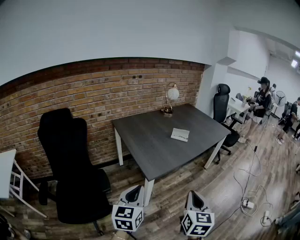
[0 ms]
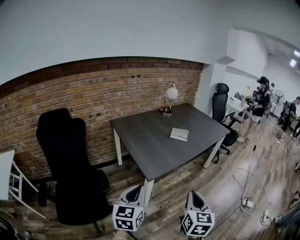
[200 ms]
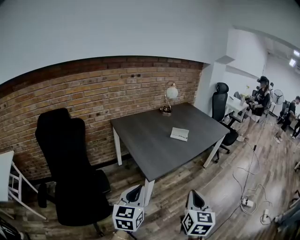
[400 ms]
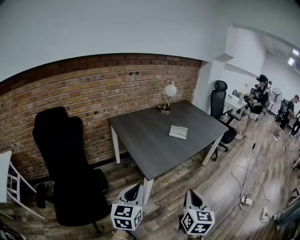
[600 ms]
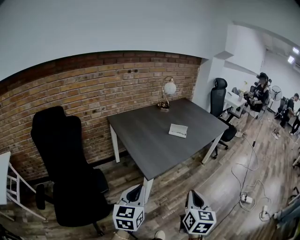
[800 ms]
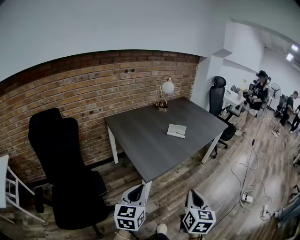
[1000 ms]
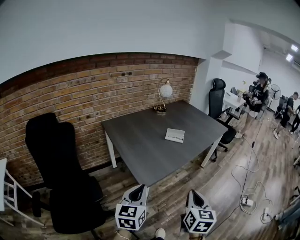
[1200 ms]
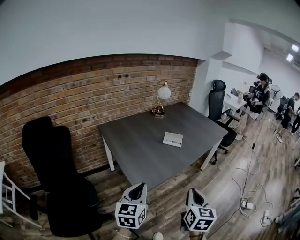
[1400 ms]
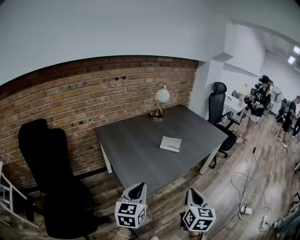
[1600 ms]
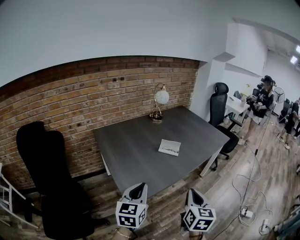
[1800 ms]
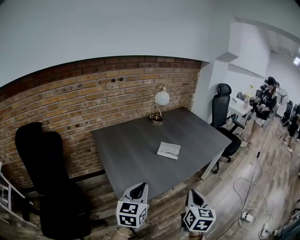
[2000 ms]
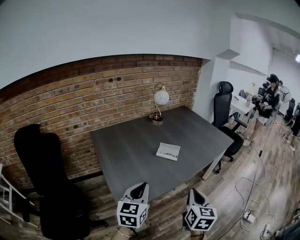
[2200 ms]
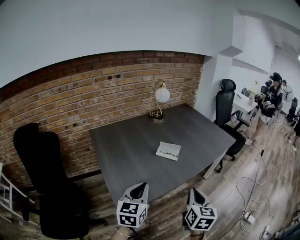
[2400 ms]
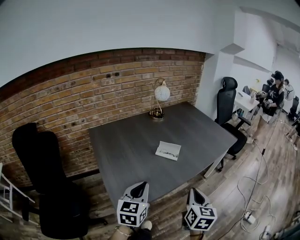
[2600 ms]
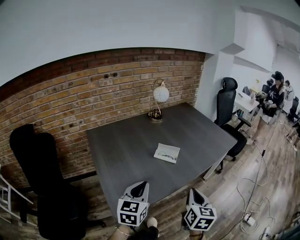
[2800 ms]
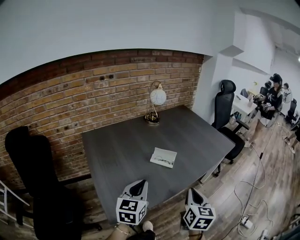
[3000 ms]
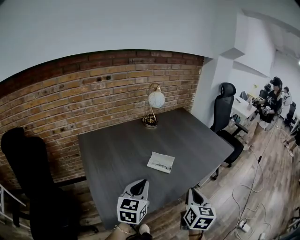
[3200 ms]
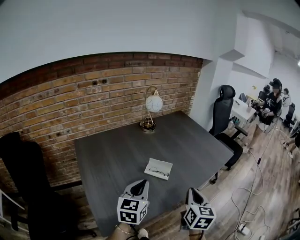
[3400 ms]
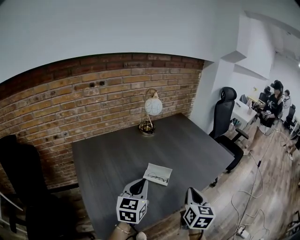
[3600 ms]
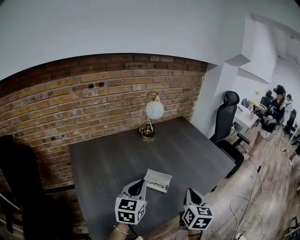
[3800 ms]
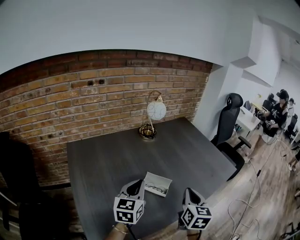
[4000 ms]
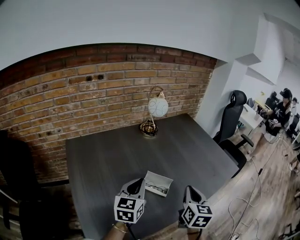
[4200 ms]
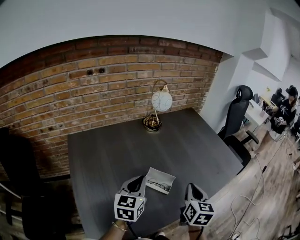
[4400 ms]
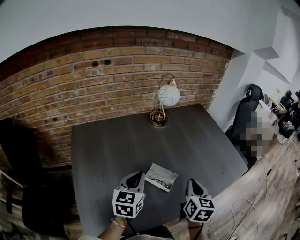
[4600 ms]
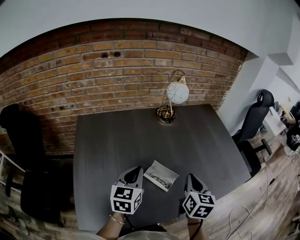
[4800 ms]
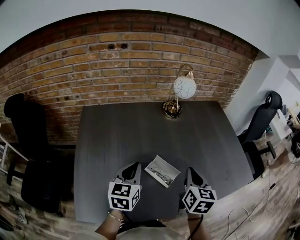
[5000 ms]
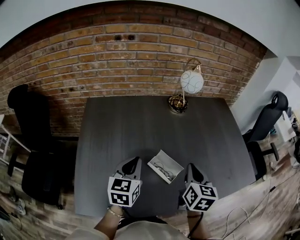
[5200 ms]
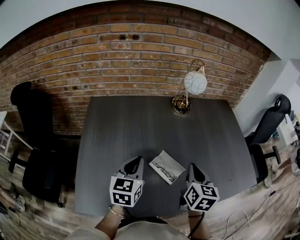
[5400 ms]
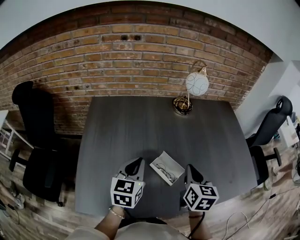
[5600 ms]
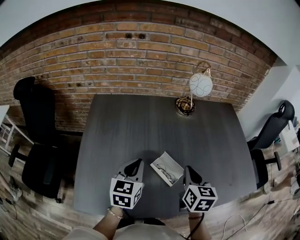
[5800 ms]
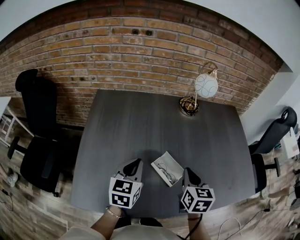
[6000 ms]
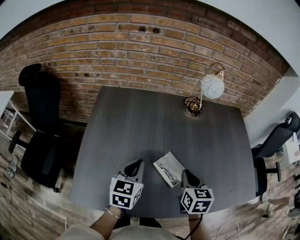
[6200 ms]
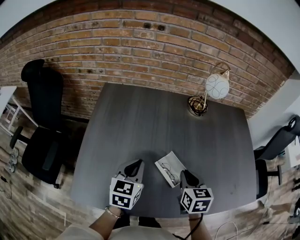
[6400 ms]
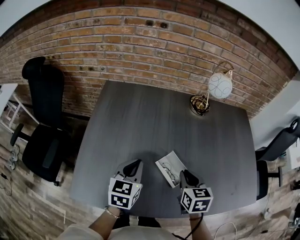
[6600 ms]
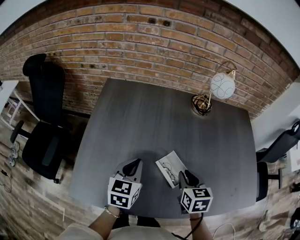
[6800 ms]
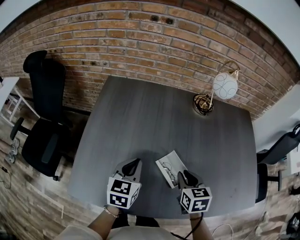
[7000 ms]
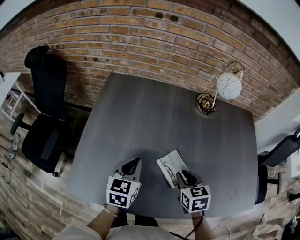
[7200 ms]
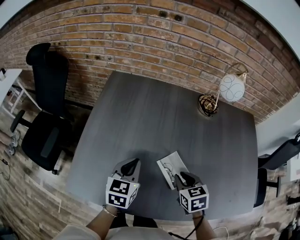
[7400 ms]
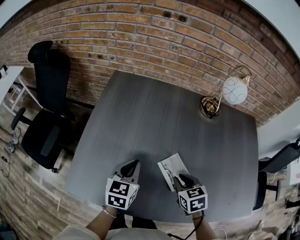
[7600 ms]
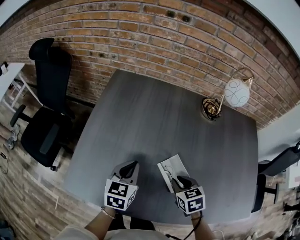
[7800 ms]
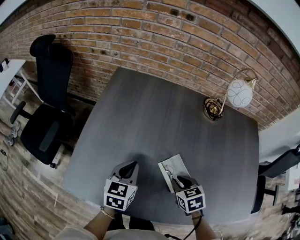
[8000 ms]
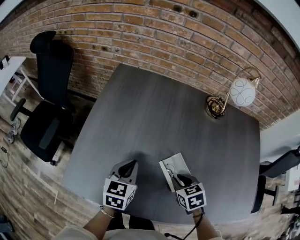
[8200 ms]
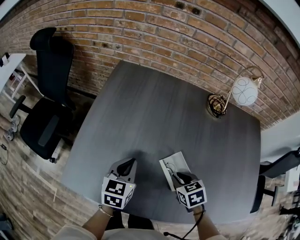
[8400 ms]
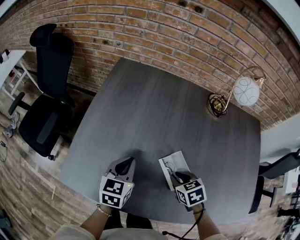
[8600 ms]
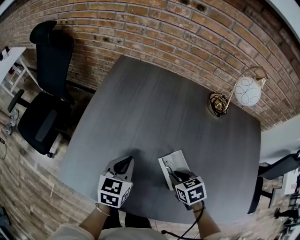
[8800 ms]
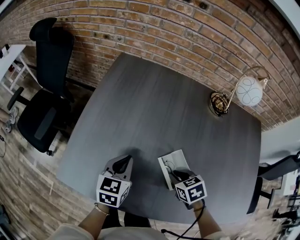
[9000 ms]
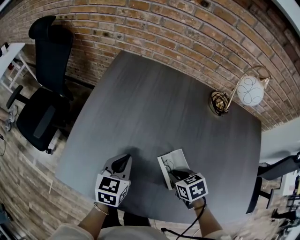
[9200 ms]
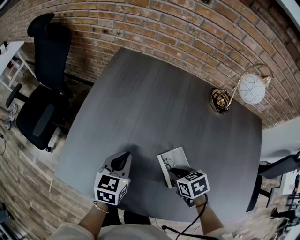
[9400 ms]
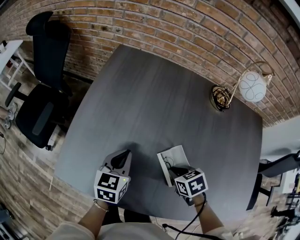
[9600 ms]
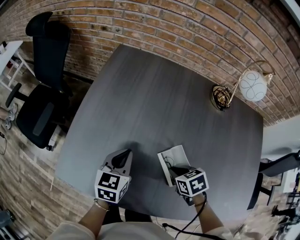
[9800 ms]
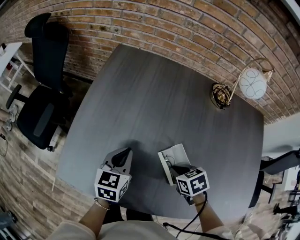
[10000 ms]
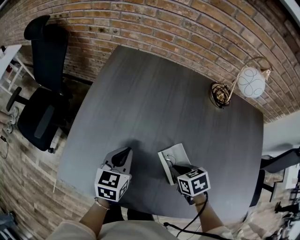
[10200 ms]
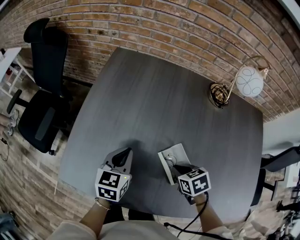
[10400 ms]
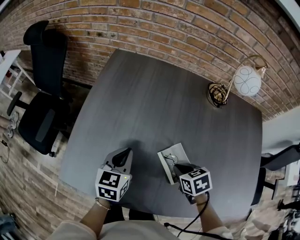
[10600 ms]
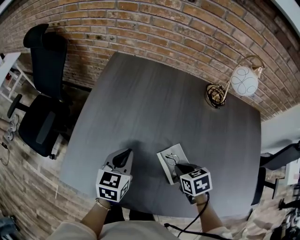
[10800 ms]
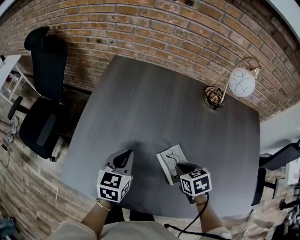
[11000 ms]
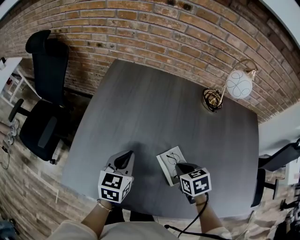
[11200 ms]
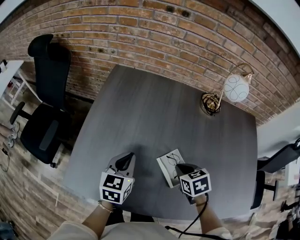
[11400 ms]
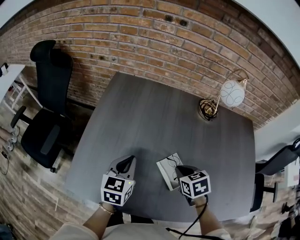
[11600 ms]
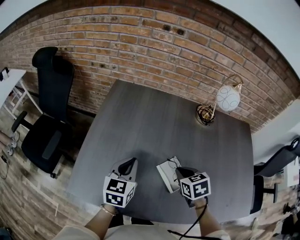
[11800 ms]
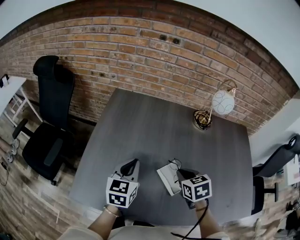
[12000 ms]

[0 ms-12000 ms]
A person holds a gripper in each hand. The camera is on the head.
0 ms to 1600 ms: Both grippers move forward, approximately 20 cm.
1600 ms to 3000 ms: The two grippers go some 20 cm forward.
3000 ms to 4400 ms: The grippers both shift forward by approximately 20 cm.
4400 ms to 6000 ms: The left gripper moves some 5 cm, and swivels some 30 degrees, while the right gripper changes place by some 10 cm, and changes its angle by about 30 degrees.
6000 ms to 7600 ms: The right gripper travels downward by some 10 cm, and rotates approximately 40 degrees. The left gripper goes approximately 5 cm downward.
7600 ms to 9000 ms: The right gripper travels downward by roughly 5 cm.
9000 ms to 10400 ms: There are only small adjustments of the grippers.
10400 ms to 12000 ms: Both grippers travel together upward, some 10 cm. The right gripper swivels approximately 20 degrees.

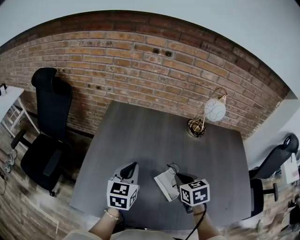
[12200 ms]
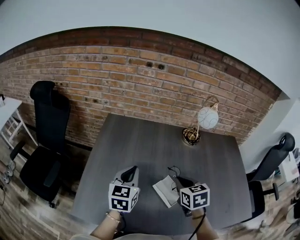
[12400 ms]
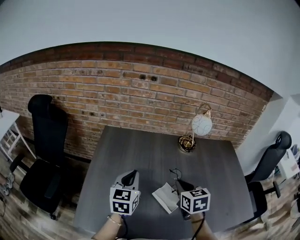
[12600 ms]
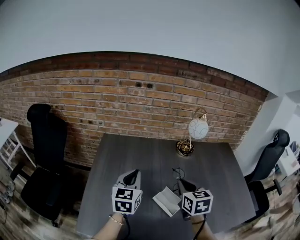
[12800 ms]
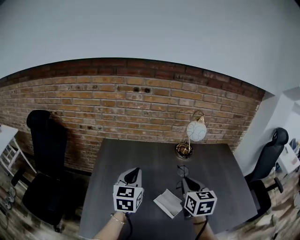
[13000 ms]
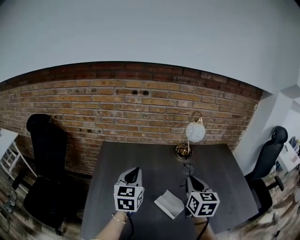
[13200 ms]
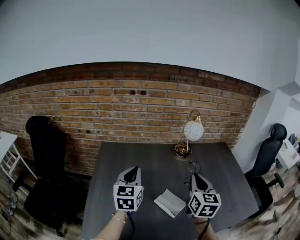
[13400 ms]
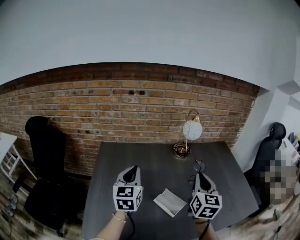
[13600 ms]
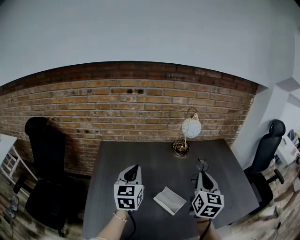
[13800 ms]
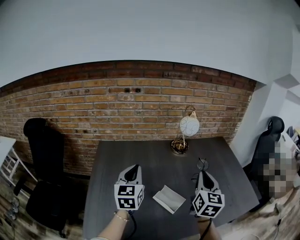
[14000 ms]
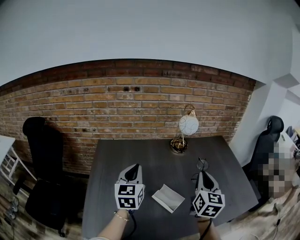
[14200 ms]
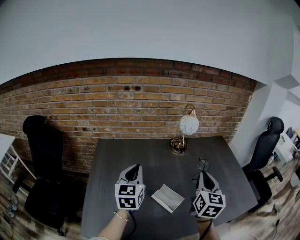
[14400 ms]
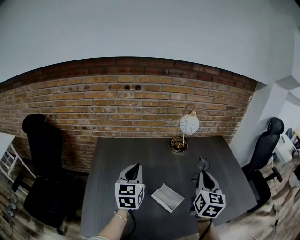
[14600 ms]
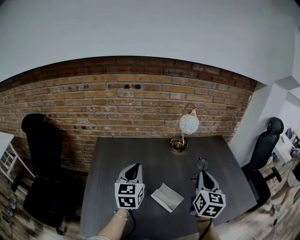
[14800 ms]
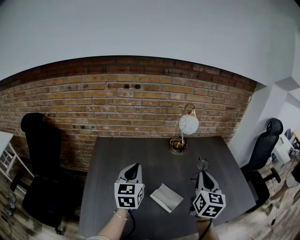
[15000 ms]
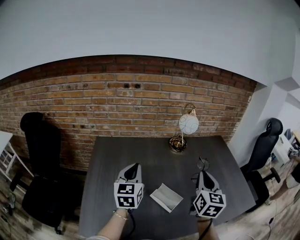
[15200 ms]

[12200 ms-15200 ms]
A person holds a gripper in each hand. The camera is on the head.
12200 ms to 13800 ms: The left gripper is displaced upward and forward by approximately 10 cm. The right gripper is displaced upward and to the right by approximately 20 cm, and tilts its fingers approximately 40 degrees upward.
13800 ms to 15200 ms: The grippers move only a little.

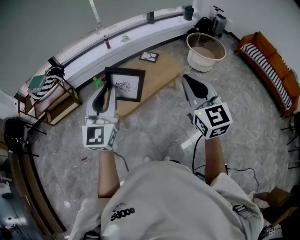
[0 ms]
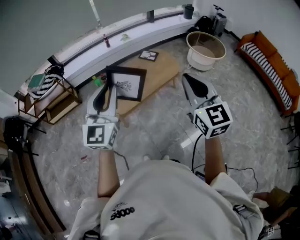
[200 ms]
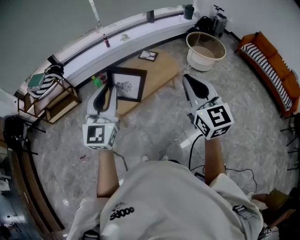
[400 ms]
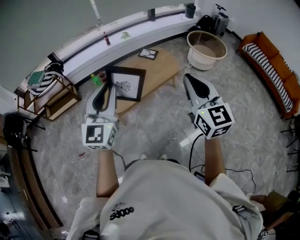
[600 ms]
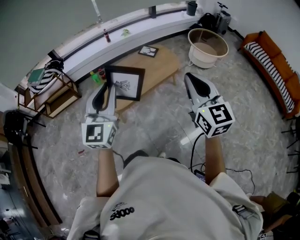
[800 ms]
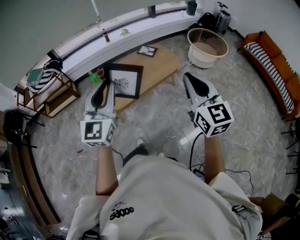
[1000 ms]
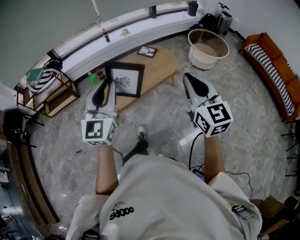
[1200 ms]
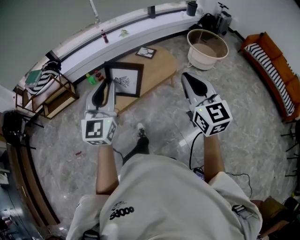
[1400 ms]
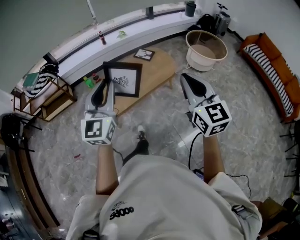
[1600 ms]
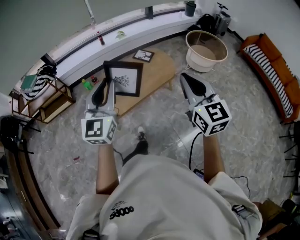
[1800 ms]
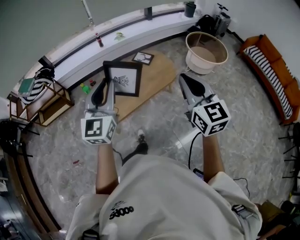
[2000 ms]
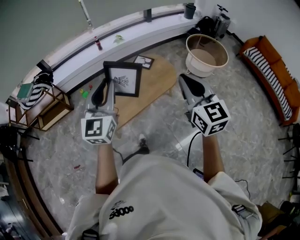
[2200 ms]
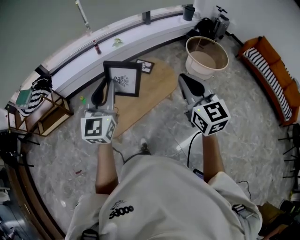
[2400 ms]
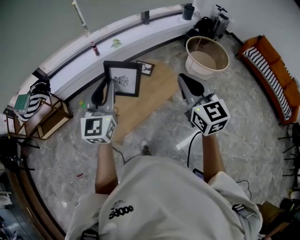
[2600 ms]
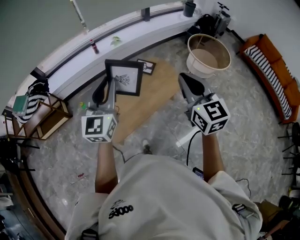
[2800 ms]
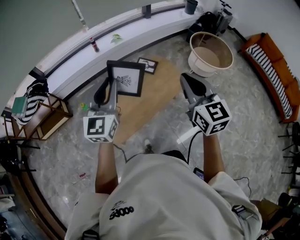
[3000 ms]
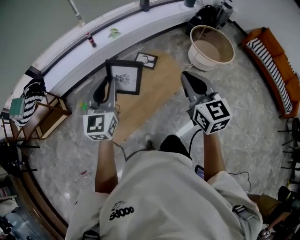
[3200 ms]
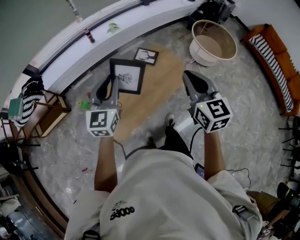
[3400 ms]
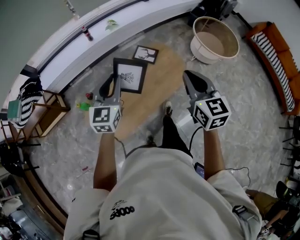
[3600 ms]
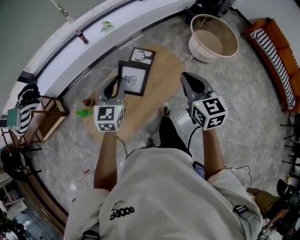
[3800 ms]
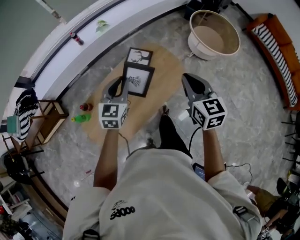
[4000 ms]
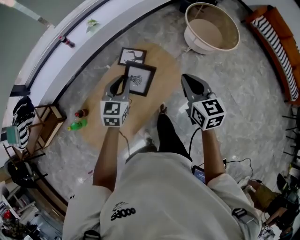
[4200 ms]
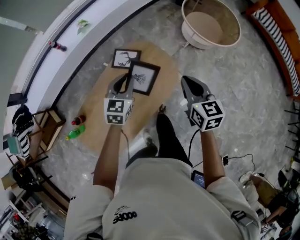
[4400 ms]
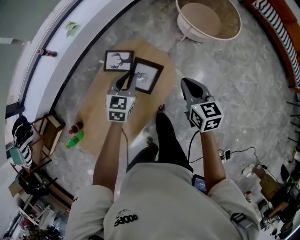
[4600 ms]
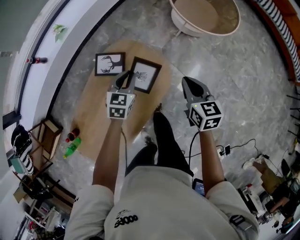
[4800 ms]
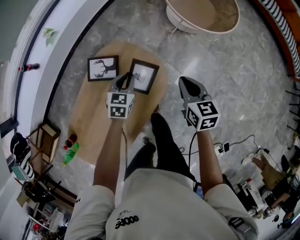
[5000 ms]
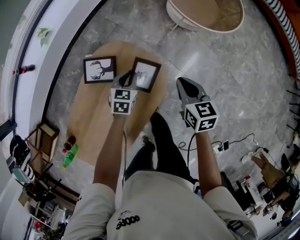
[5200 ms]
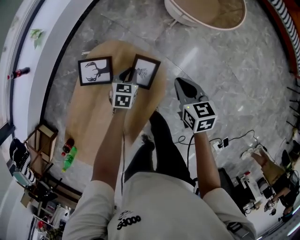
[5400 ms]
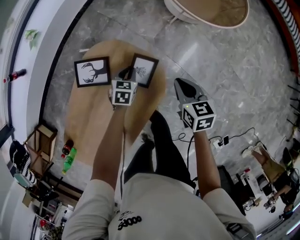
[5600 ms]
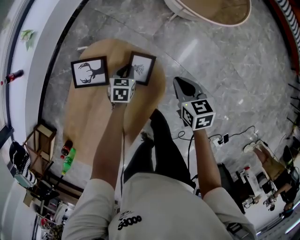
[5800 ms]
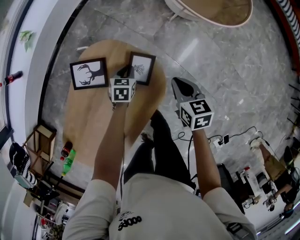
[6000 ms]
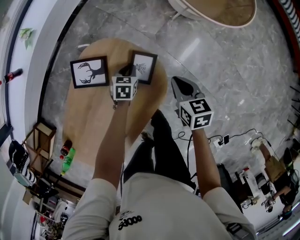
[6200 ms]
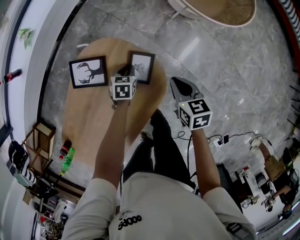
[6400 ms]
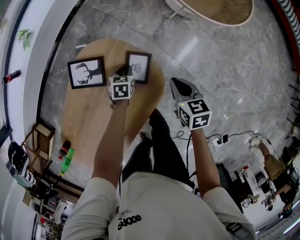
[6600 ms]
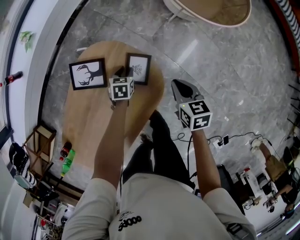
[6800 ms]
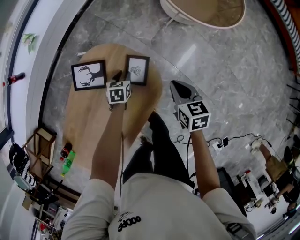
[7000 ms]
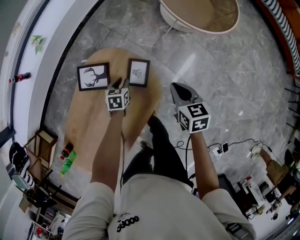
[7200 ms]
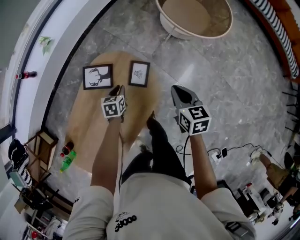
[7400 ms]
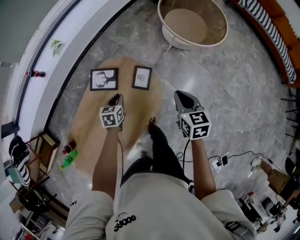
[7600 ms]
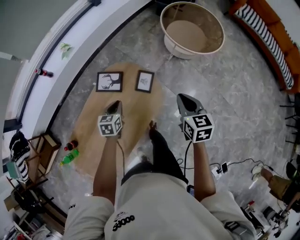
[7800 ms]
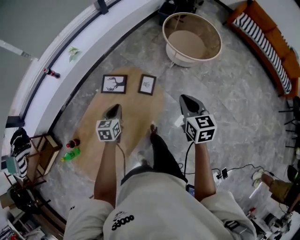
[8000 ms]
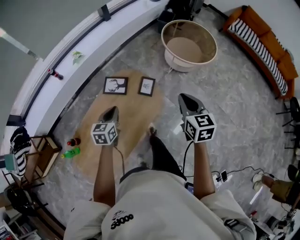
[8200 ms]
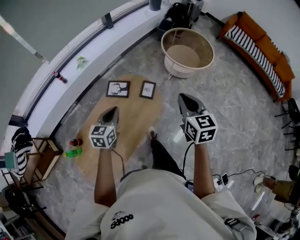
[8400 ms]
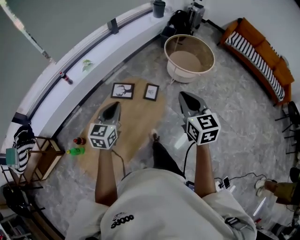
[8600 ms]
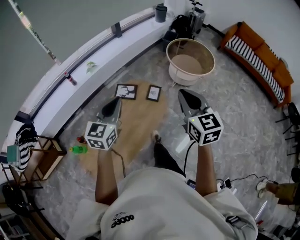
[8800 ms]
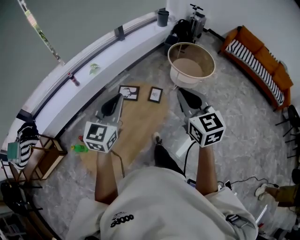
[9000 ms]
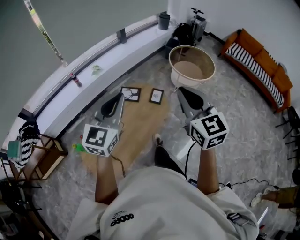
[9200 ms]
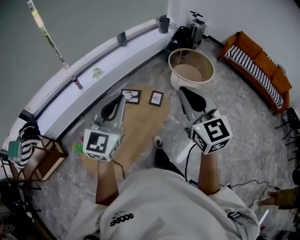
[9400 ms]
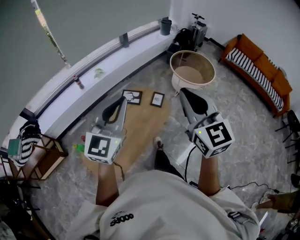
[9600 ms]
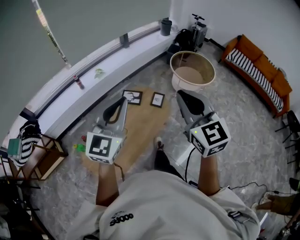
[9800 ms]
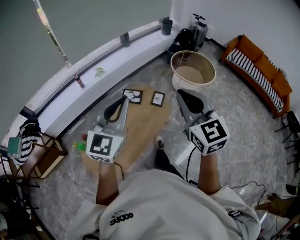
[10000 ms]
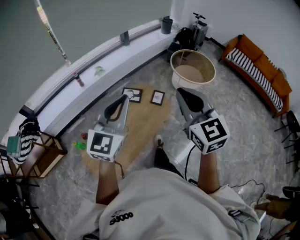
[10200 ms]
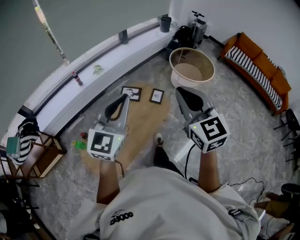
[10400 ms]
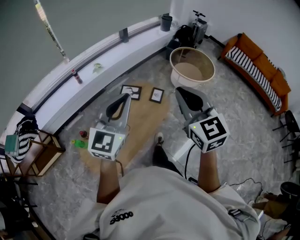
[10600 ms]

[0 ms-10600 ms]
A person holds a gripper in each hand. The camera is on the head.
0 ms to 1600 ms: Both grippers move to the right and forward, roughly 10 cm.
1600 ms to 3000 ms: The grippers both shift forward by about 30 cm.
3000 ms to 4600 ms: The left gripper moves forward, downward and to the right, approximately 60 cm, and tips its fingers downward by some 40 degrees. The right gripper goes about 50 cm downward, forward and to the right, and turns by approximately 30 degrees.
4600 ms to 6000 ms: The left gripper moves downward, some 35 cm, and rotates some 30 degrees; the right gripper travels downward and forward by some 25 cm.
6000 ms to 7600 ms: The right gripper travels upward and backward by about 20 cm. The left gripper goes about 20 cm upward, backward and to the left.
7600 ms to 9000 ms: The grippers both shift upward and backward by some 50 cm. The left gripper points its fingers approximately 50 degrees further upward. Meanwhile the right gripper rotates approximately 40 degrees.
9000 ms to 10600 ms: Both grippers move backward and upward, approximately 10 cm.
